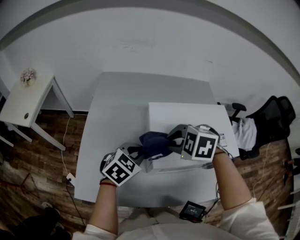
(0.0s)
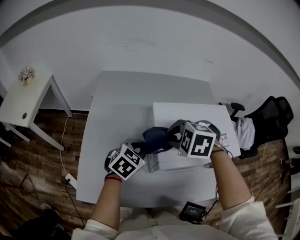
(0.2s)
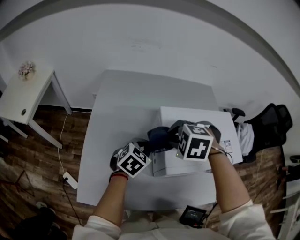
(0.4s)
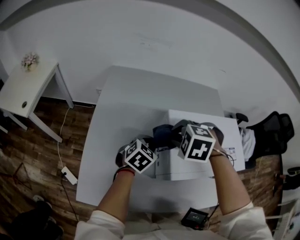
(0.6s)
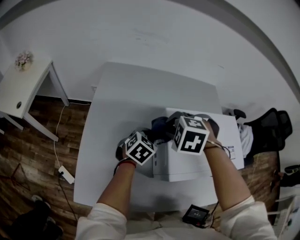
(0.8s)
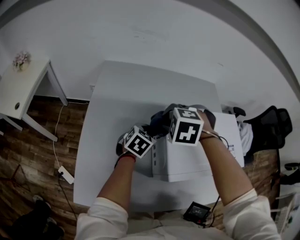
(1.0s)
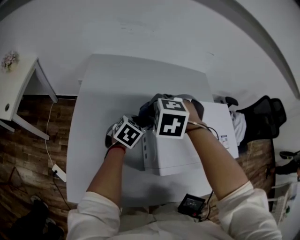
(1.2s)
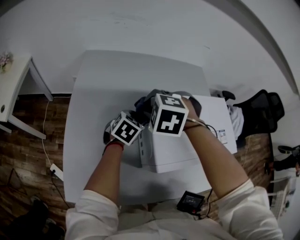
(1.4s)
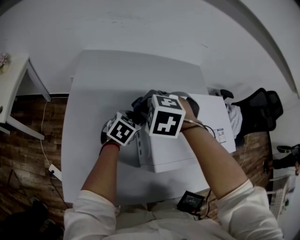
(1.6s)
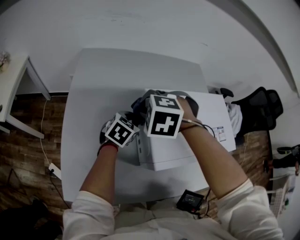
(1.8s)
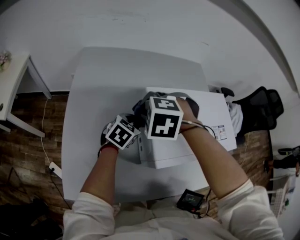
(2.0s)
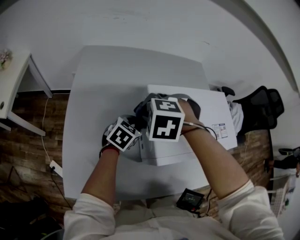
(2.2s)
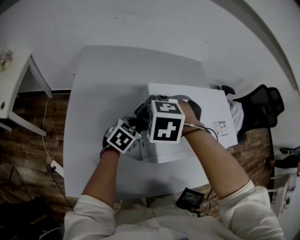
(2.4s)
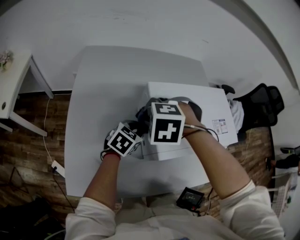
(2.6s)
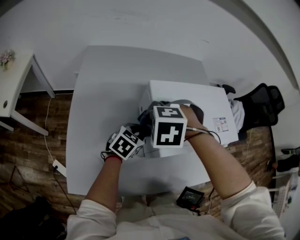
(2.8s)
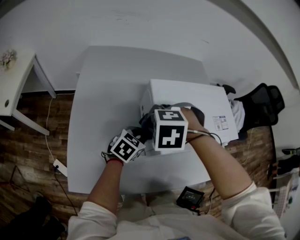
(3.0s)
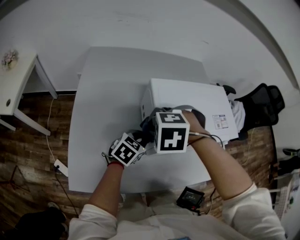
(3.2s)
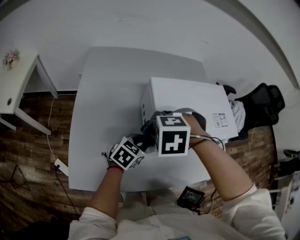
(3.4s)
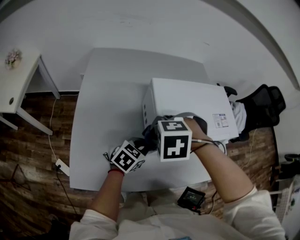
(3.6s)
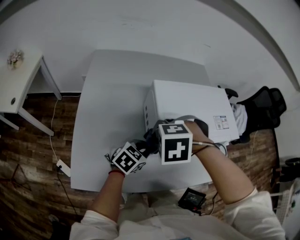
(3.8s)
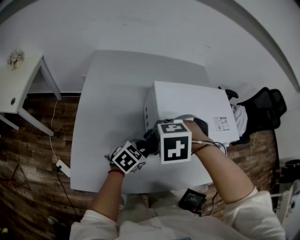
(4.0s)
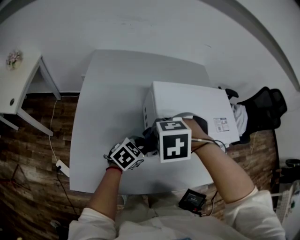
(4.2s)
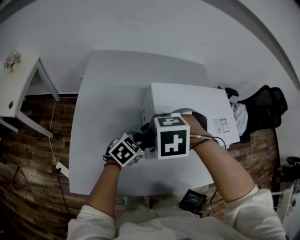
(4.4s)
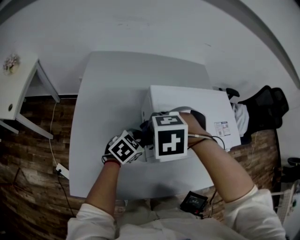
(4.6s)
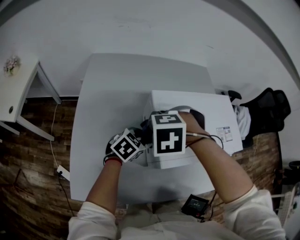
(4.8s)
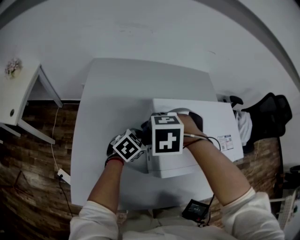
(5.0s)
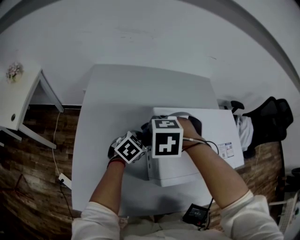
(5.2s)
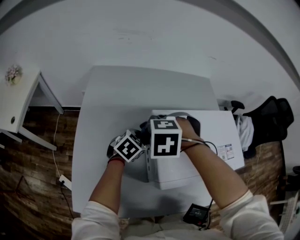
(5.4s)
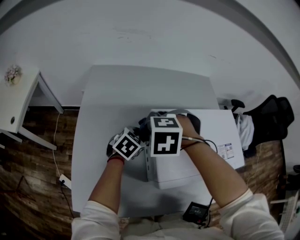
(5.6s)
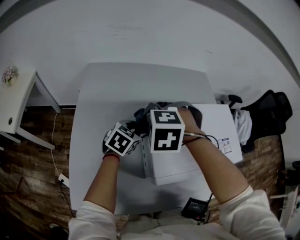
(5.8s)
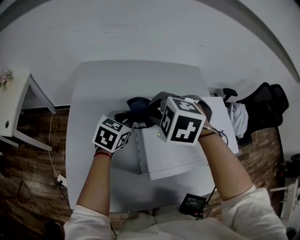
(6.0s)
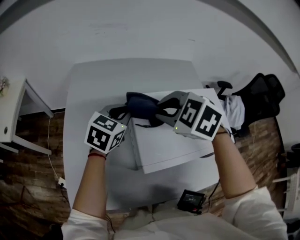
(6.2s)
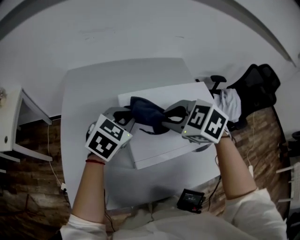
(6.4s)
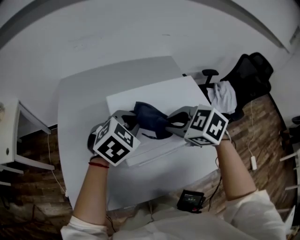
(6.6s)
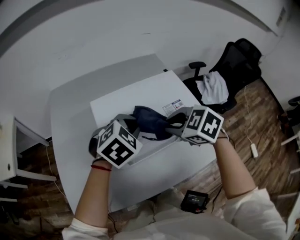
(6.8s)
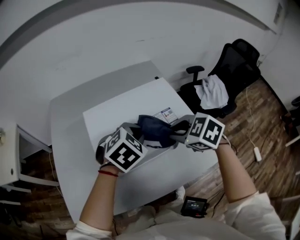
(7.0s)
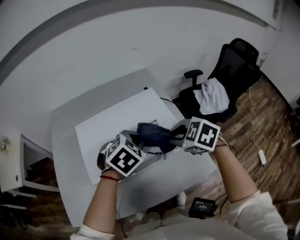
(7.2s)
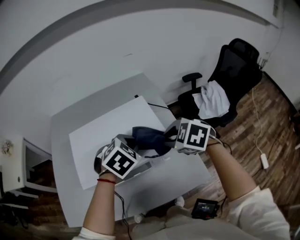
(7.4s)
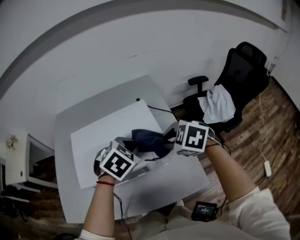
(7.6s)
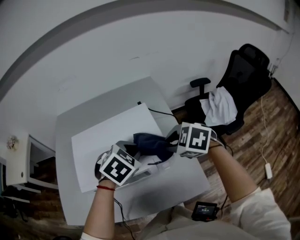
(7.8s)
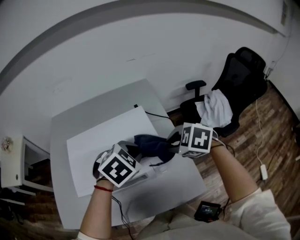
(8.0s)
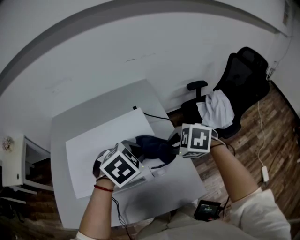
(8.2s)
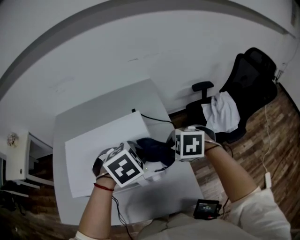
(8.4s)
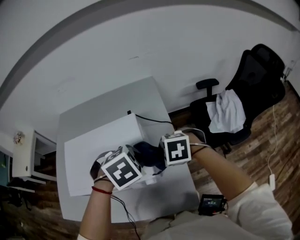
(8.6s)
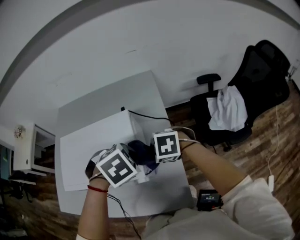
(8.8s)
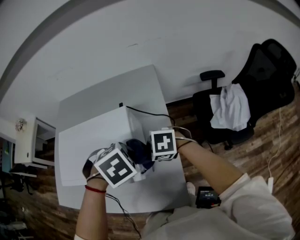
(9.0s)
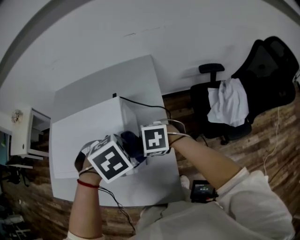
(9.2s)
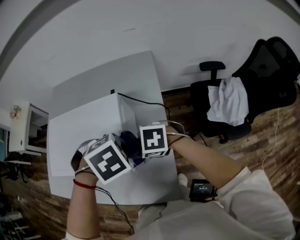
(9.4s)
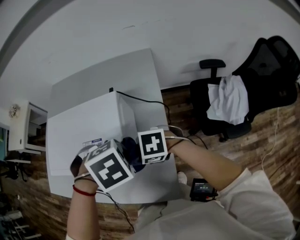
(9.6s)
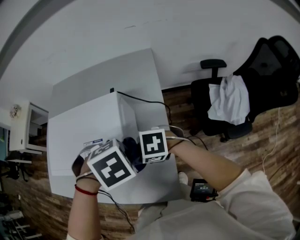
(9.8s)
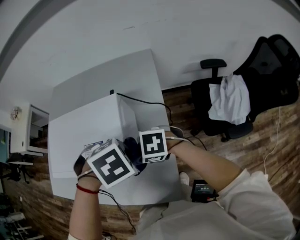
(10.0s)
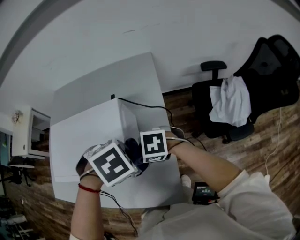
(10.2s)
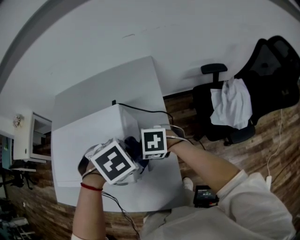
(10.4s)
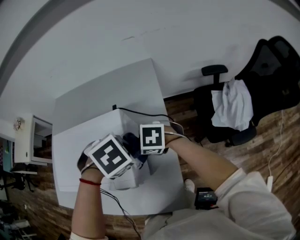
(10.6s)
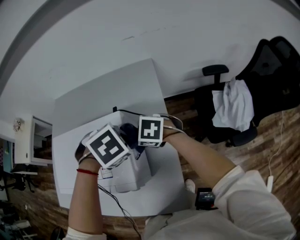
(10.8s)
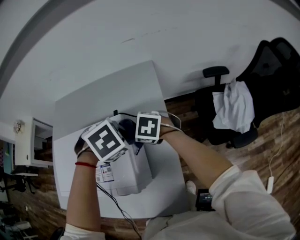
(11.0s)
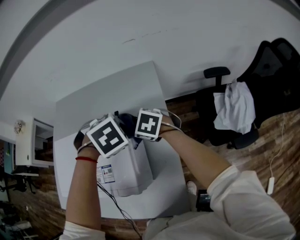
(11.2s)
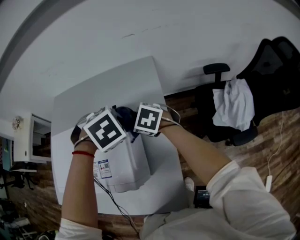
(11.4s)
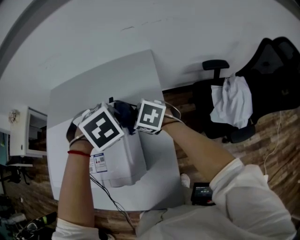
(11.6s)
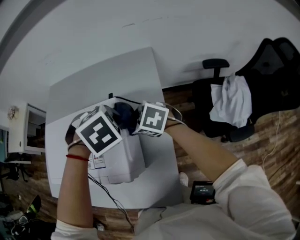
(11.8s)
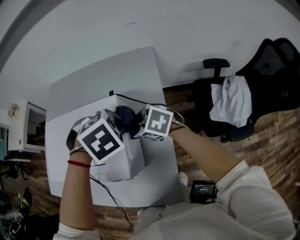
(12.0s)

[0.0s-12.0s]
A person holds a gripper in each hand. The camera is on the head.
0.0s to 1.6s: The left gripper shifts about 15 cm forward and downward, while the right gripper moves forward and to the left, approximately 15 cm.
1.6s to 3.0s: The left gripper moves some 15 cm; the right gripper changes place by about 10 cm.
4.4s to 6.0s: The left gripper shifts by roughly 20 cm. The right gripper ends up roughly 15 cm from where it was, and rotates roughly 20 degrees.
6.0s to 7.6s: Both grippers travel together to the right, some 40 cm. The right gripper rotates some 30 degrees, while the left gripper swivels roughly 40 degrees.
7.6s to 9.0s: The left gripper ends up some 10 cm from where it was, and changes its angle by approximately 20 degrees, while the right gripper is displaced downward by roughly 10 cm, and changes its angle by about 30 degrees.
9.0s to 10.4s: The grippers make only small movements.

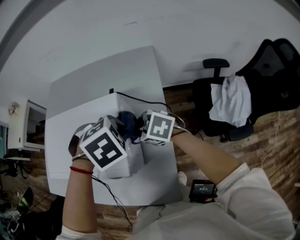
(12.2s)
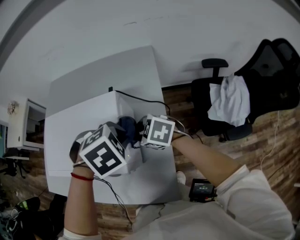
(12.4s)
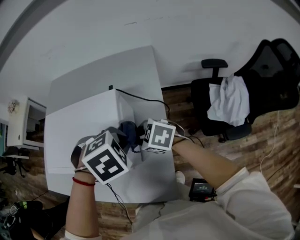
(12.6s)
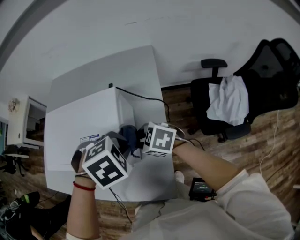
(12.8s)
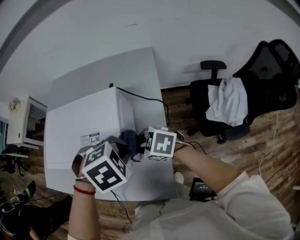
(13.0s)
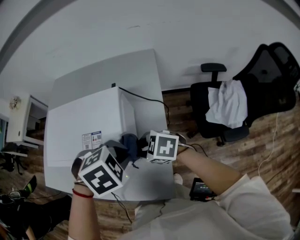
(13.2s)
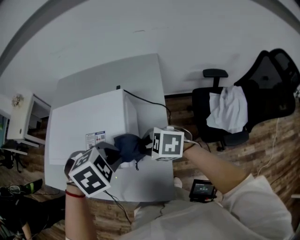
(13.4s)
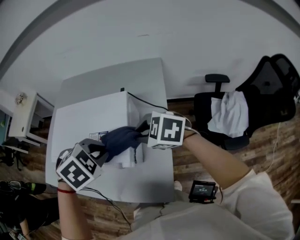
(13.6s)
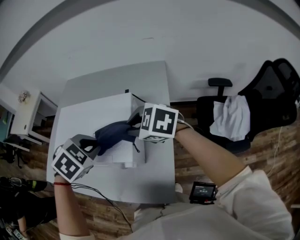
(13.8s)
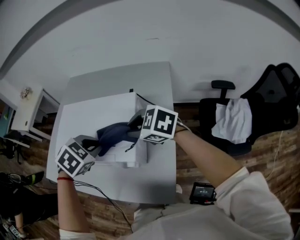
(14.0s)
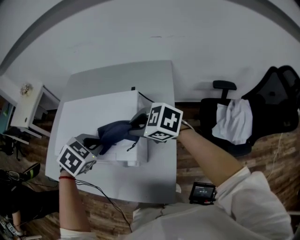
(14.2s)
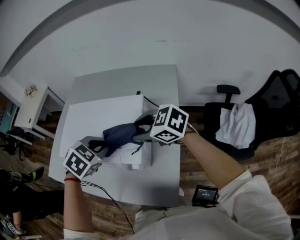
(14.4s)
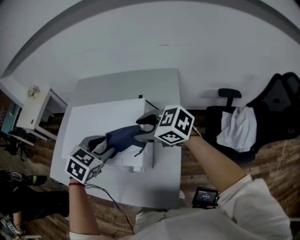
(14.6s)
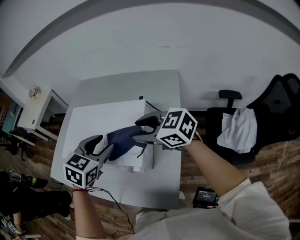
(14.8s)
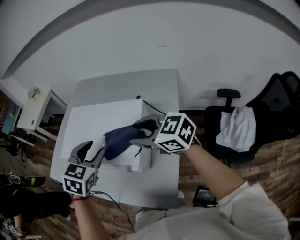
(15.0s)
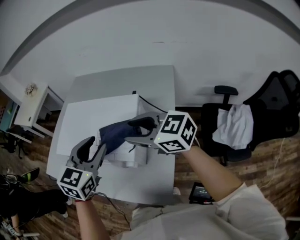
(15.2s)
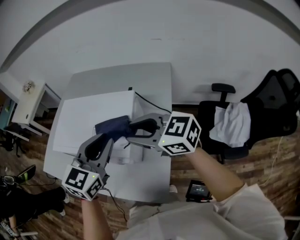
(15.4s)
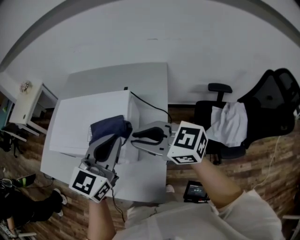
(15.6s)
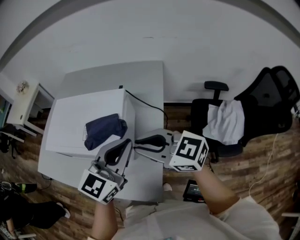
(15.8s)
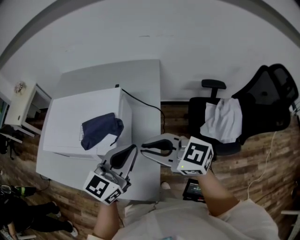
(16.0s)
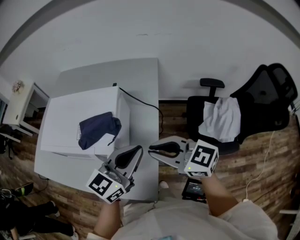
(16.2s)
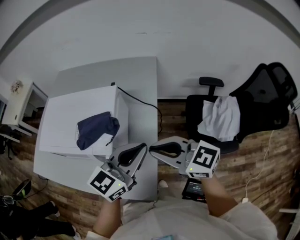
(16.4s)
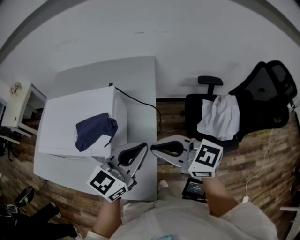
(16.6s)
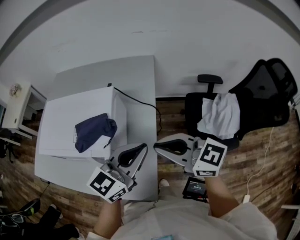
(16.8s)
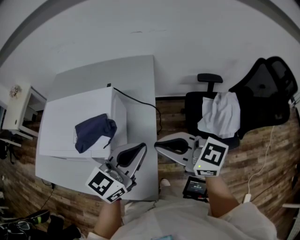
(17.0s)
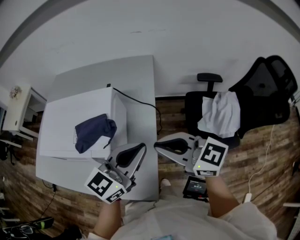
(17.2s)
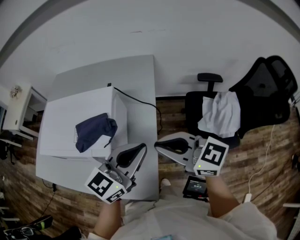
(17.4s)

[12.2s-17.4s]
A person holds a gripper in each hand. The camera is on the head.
12.2s to 14.0s: The left gripper shifts by about 15 cm, and turns by some 20 degrees. The right gripper is displaced upward by about 10 cm.
14.0s to 15.6s: The right gripper is displaced backward and upward by about 10 cm, rotates about 30 degrees, and opens and closes again; the left gripper heads to the right, upward and backward, covering some 15 cm, tips its fingers upward by roughly 60 degrees, and opens, then closes once more.
15.6s to 17.4s: The grippers both shift to the right and backward by approximately 10 cm. The left gripper rotates approximately 20 degrees.

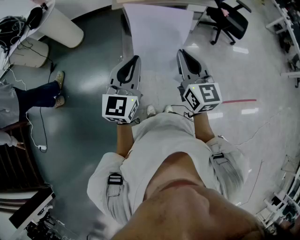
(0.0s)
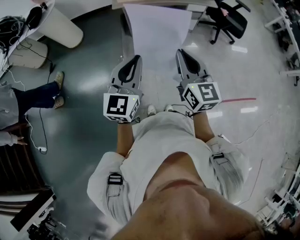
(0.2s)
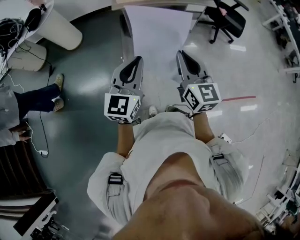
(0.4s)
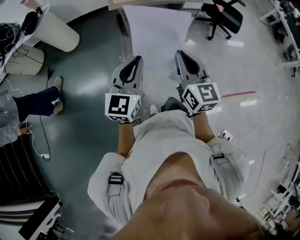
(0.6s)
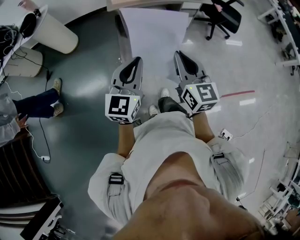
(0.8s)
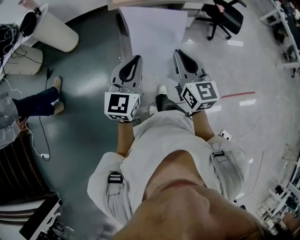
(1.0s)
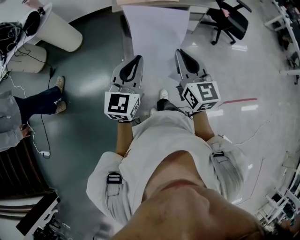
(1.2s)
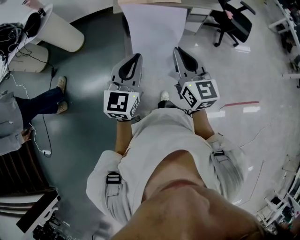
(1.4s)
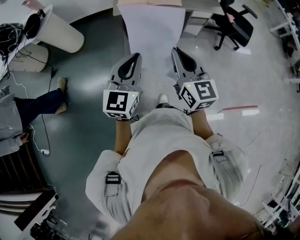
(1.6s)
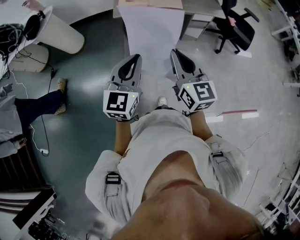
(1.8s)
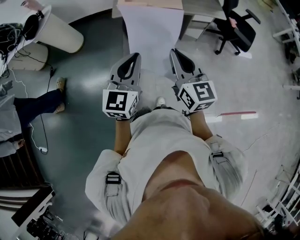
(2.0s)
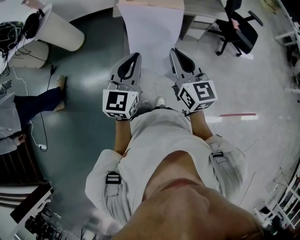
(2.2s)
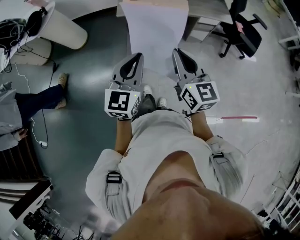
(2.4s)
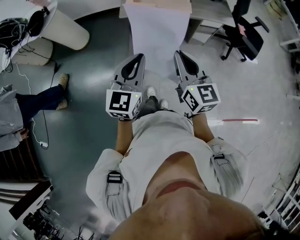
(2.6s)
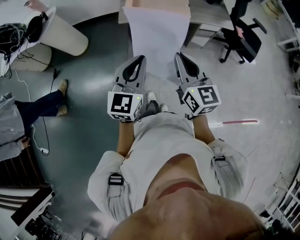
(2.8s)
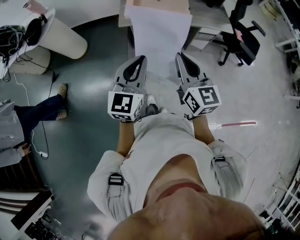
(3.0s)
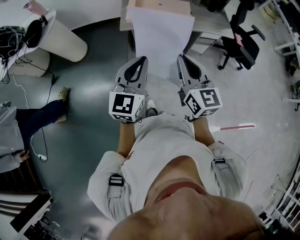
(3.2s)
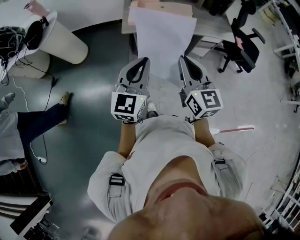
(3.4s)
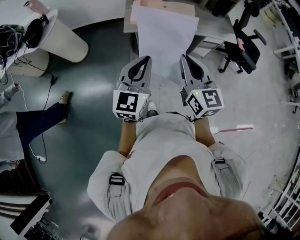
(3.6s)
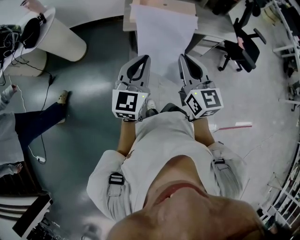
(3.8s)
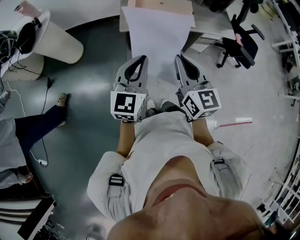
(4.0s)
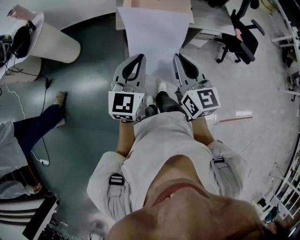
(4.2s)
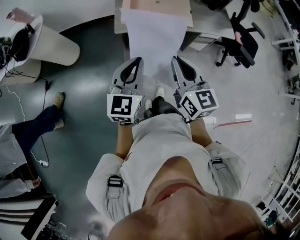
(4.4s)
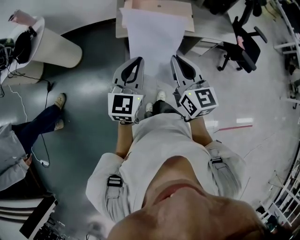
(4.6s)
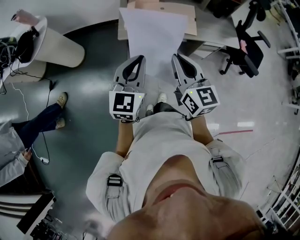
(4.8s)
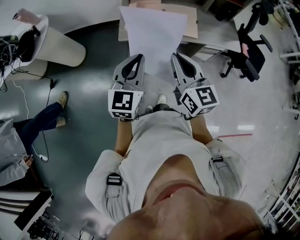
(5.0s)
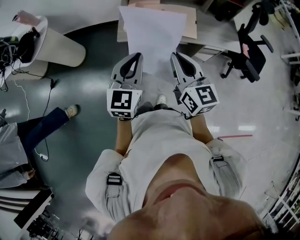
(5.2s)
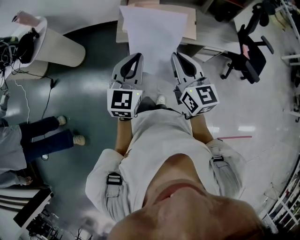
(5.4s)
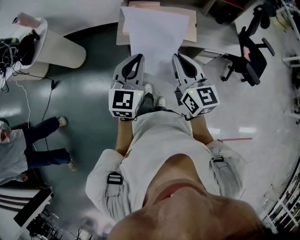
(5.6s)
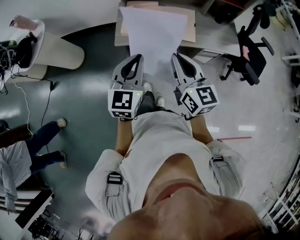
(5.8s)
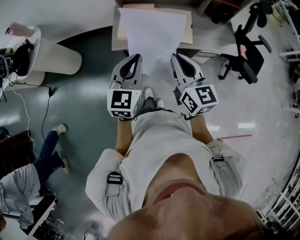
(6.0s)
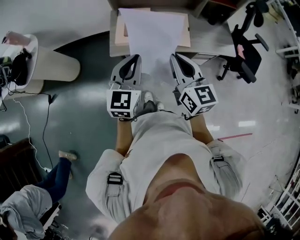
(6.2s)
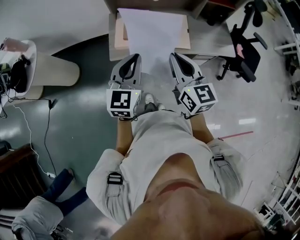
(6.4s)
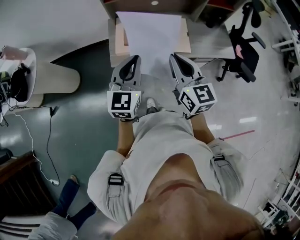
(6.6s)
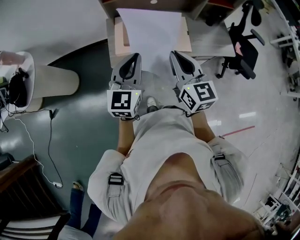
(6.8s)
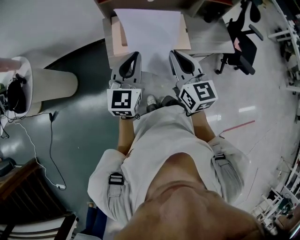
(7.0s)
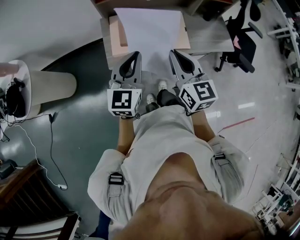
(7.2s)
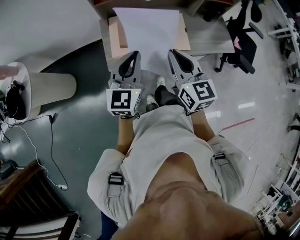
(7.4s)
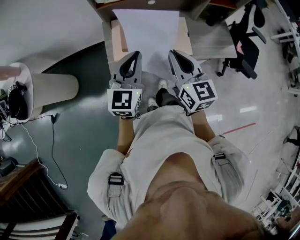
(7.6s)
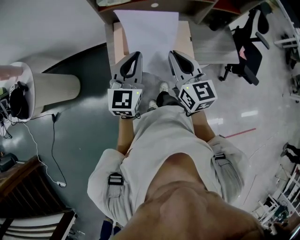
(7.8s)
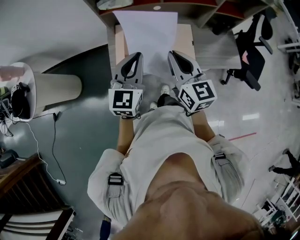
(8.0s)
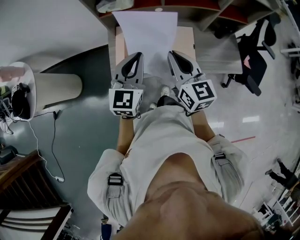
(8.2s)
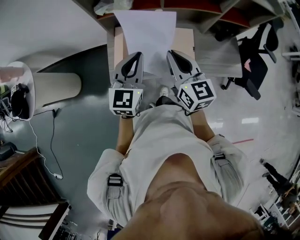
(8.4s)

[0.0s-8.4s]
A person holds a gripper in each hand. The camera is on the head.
0.0s to 1.4s: The grippers both shift forward by roughly 10 cm.
1.4s to 2.8s: The grippers both shift forward by approximately 15 cm.
2.8s to 4.2s: The two grippers go some 15 cm forward and to the left.
4.2s to 5.6s: Both grippers travel together forward and to the right, approximately 15 cm.
5.6s to 7.0s: The two grippers go some 15 cm forward.
7.0s to 8.4s: The grippers both shift forward by some 15 cm.
